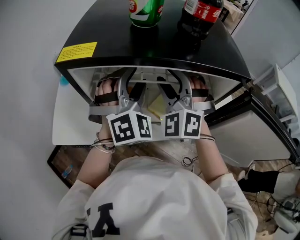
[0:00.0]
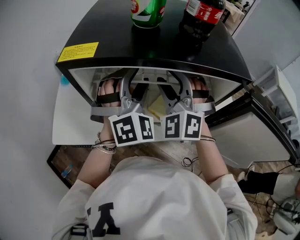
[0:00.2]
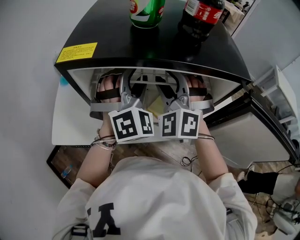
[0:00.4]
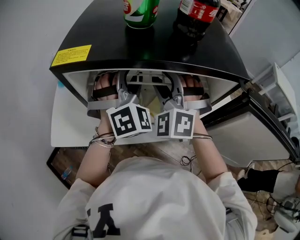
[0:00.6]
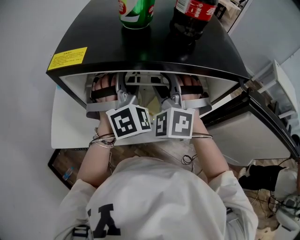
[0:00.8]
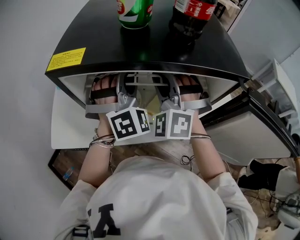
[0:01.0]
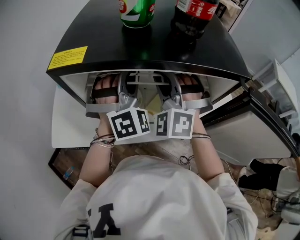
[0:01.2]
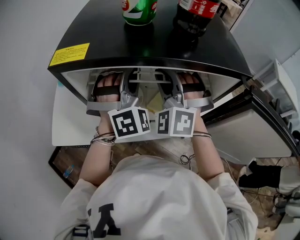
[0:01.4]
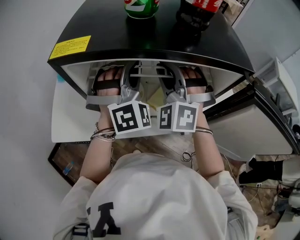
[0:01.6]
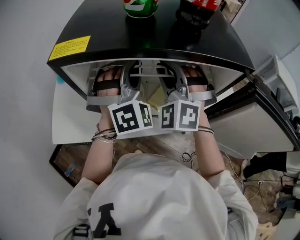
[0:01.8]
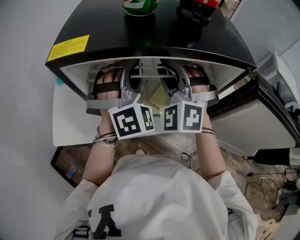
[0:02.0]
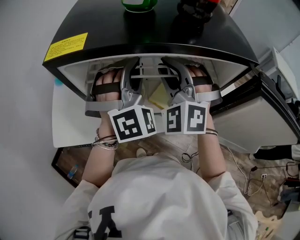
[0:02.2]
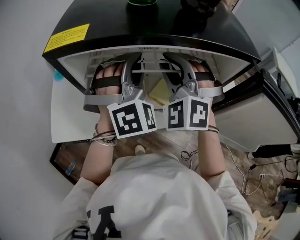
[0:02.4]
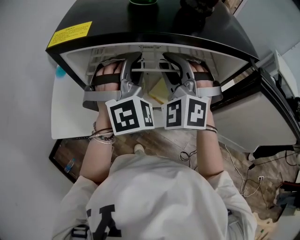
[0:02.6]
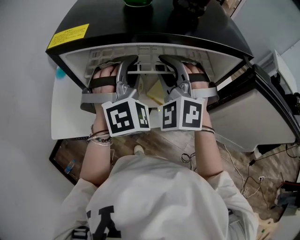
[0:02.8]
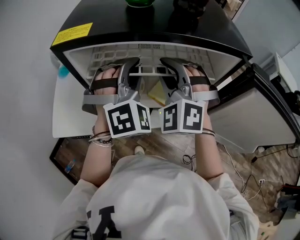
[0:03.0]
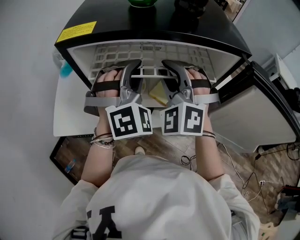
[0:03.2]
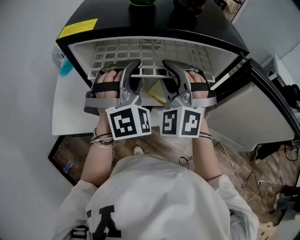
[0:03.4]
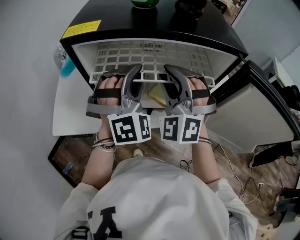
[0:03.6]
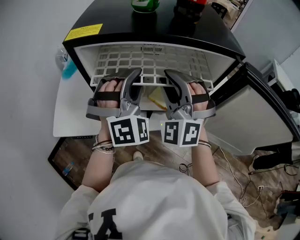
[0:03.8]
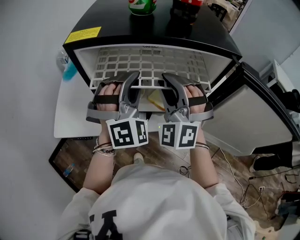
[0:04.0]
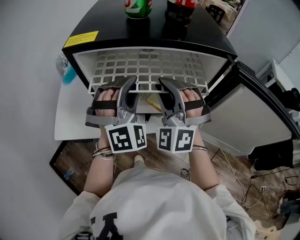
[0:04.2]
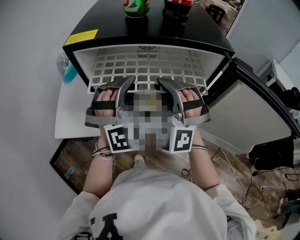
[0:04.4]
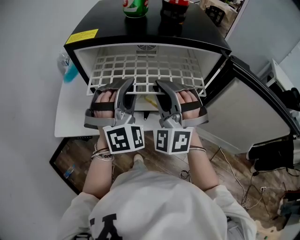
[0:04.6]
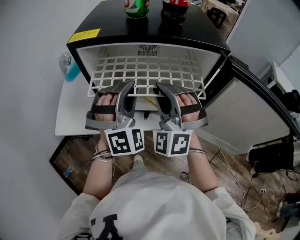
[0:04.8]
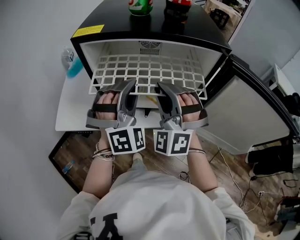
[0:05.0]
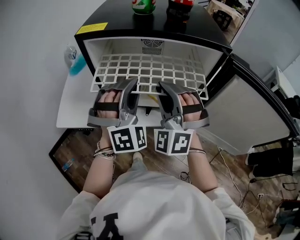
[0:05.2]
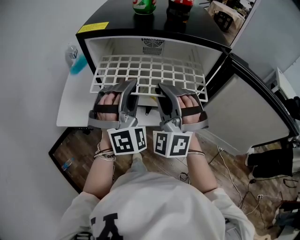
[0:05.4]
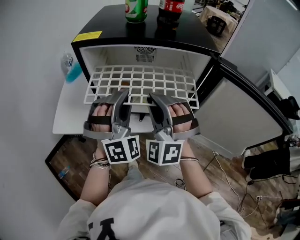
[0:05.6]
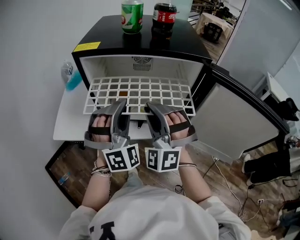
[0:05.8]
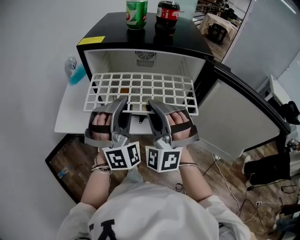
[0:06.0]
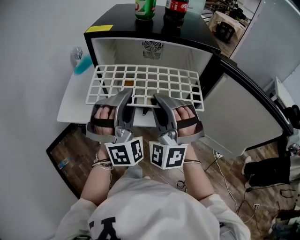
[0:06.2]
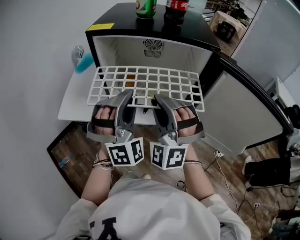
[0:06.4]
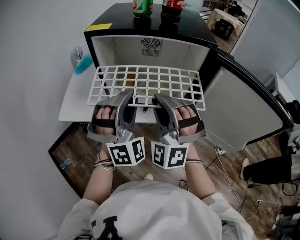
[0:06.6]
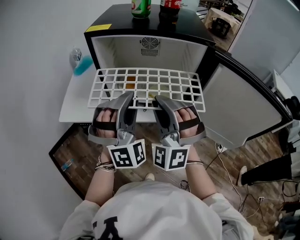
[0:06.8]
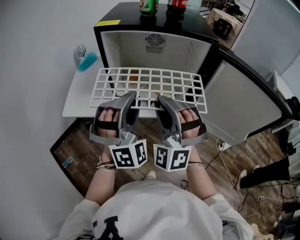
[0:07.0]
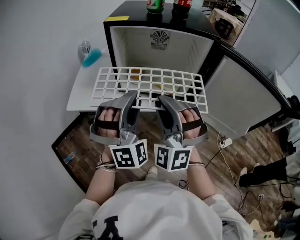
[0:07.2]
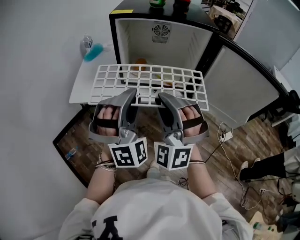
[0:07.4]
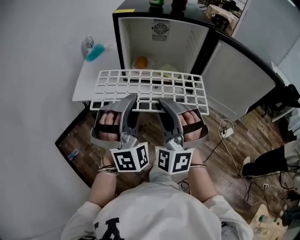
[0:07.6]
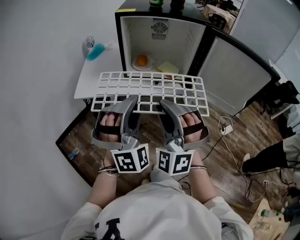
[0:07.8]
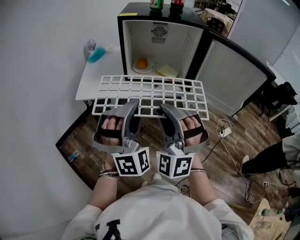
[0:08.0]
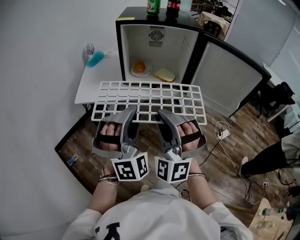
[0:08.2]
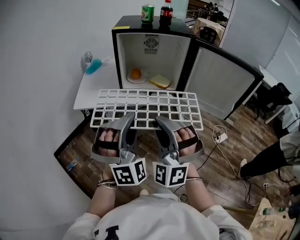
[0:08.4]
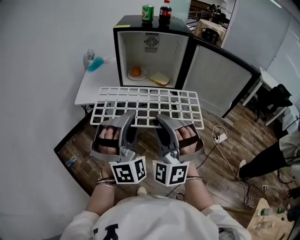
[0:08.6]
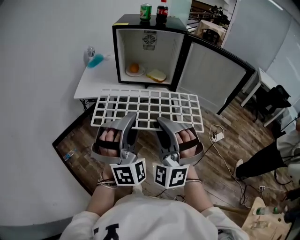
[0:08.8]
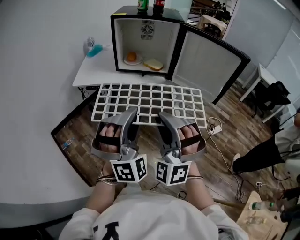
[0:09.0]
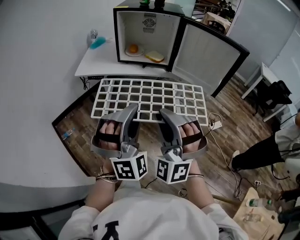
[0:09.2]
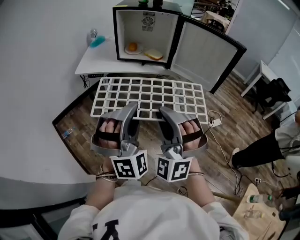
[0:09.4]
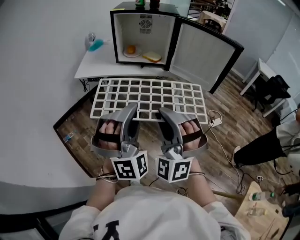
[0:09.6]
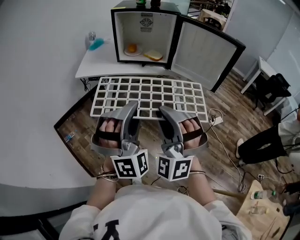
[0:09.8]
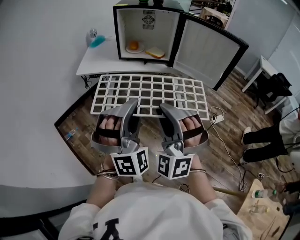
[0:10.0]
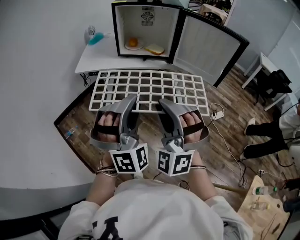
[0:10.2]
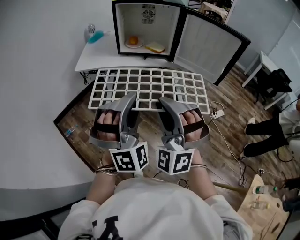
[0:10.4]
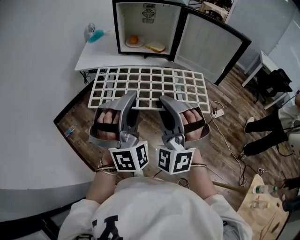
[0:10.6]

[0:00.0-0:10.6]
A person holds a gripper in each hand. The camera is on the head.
0:00.0 to 0:01.6: The left gripper closes its fingers; the right gripper closes its fingers.
0:01.6 to 0:03.0: The grippers stay close to where they were, moving slightly.
0:03.0 to 0:04.6: The two grippers go roughly 5 cm backward.
0:04.6 to 0:06.0: The two grippers go roughly 10 cm backward.
0:06.0 to 0:07.6: Both grippers move backward, some 20 cm.
0:07.6 to 0:09.0: The grippers both shift backward by about 25 cm.
0:09.0 to 0:10.6: The grippers make only small movements.

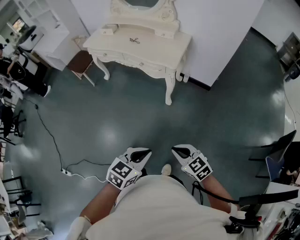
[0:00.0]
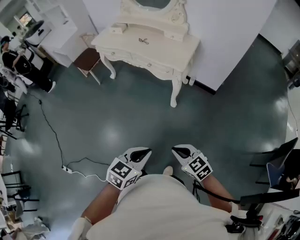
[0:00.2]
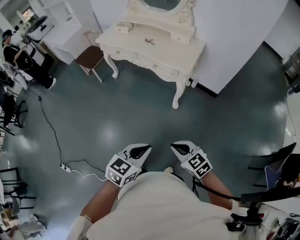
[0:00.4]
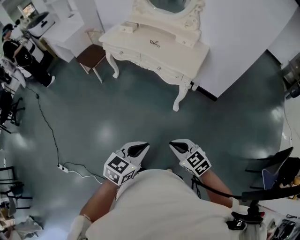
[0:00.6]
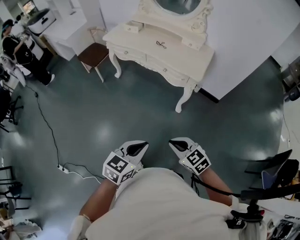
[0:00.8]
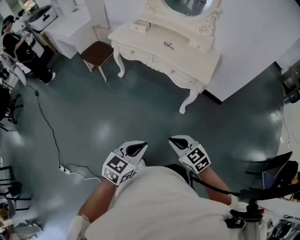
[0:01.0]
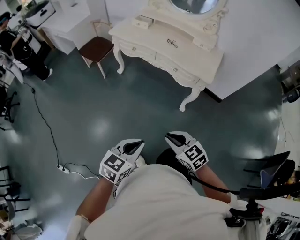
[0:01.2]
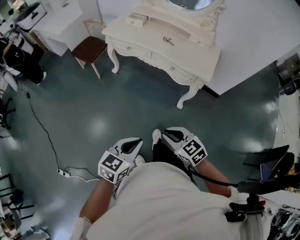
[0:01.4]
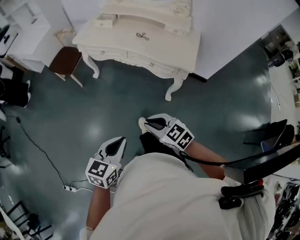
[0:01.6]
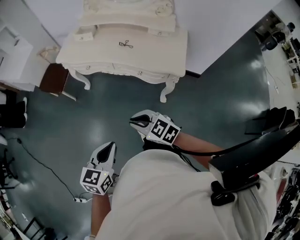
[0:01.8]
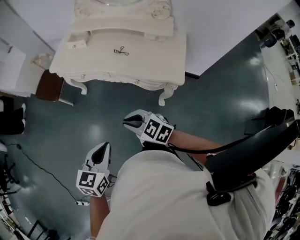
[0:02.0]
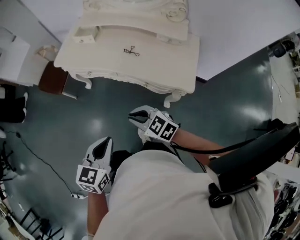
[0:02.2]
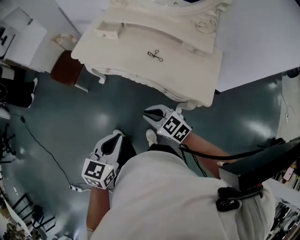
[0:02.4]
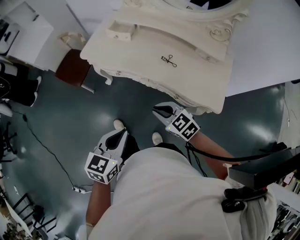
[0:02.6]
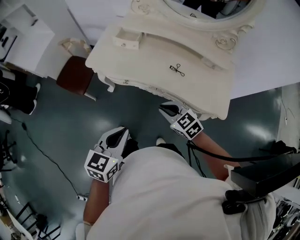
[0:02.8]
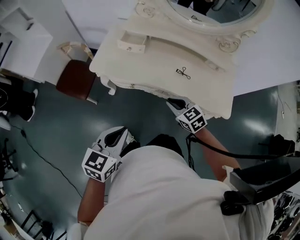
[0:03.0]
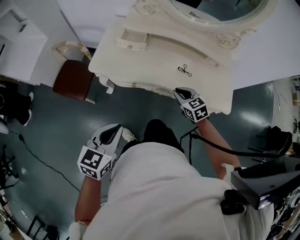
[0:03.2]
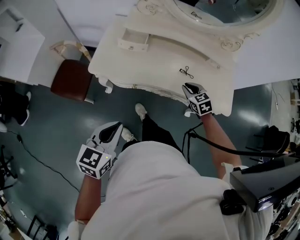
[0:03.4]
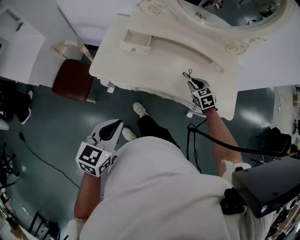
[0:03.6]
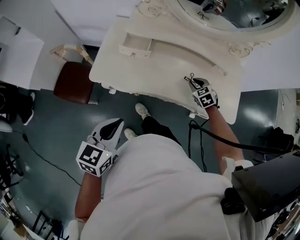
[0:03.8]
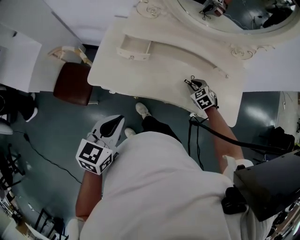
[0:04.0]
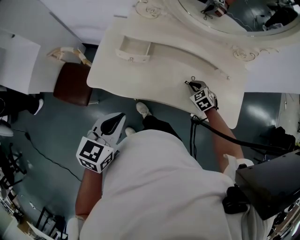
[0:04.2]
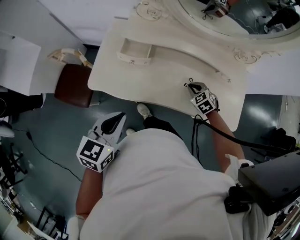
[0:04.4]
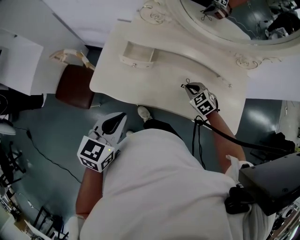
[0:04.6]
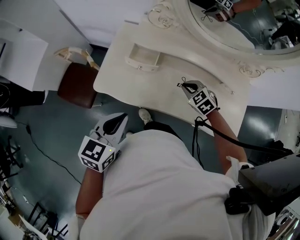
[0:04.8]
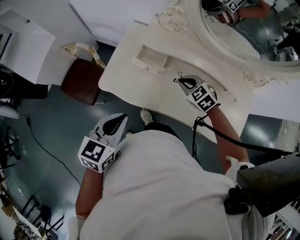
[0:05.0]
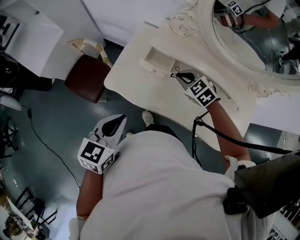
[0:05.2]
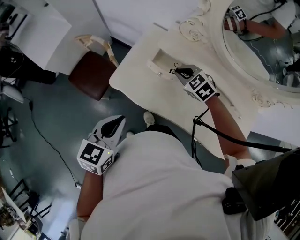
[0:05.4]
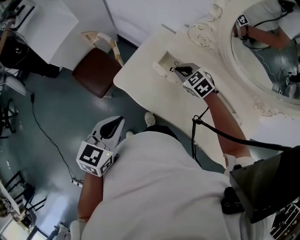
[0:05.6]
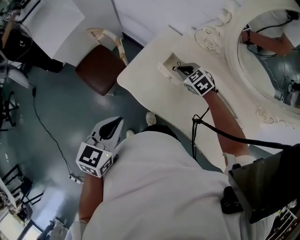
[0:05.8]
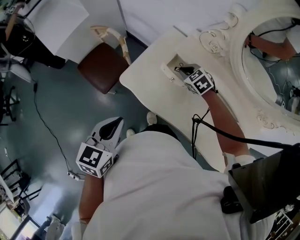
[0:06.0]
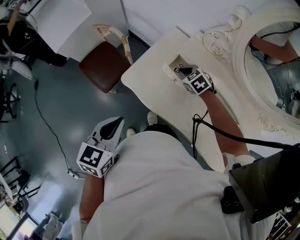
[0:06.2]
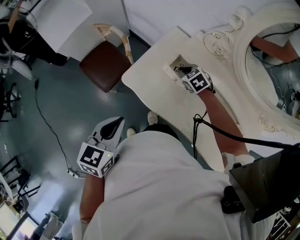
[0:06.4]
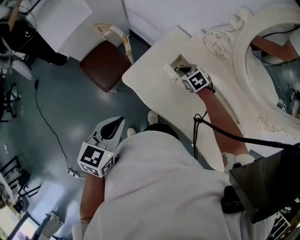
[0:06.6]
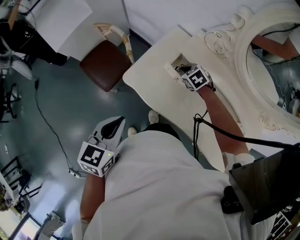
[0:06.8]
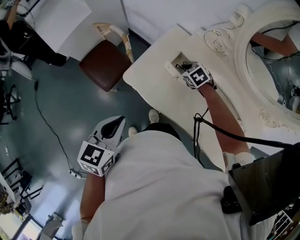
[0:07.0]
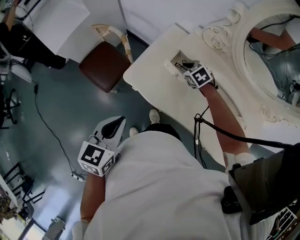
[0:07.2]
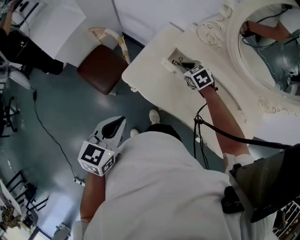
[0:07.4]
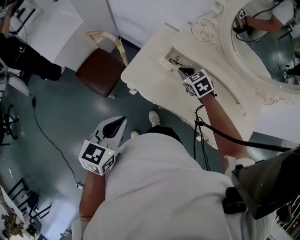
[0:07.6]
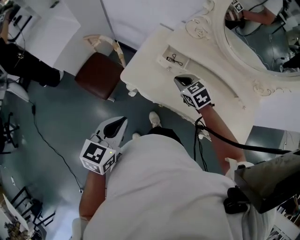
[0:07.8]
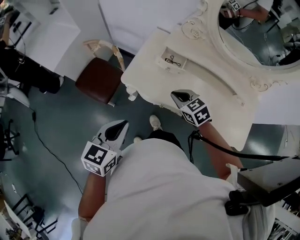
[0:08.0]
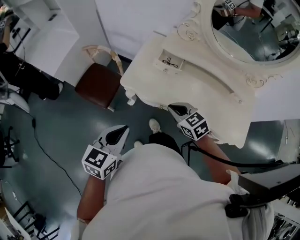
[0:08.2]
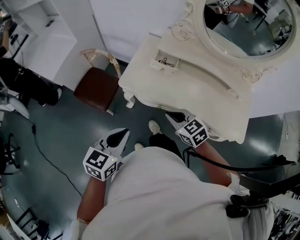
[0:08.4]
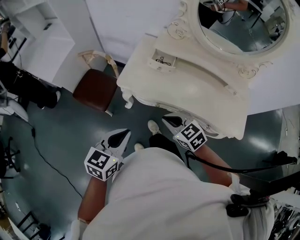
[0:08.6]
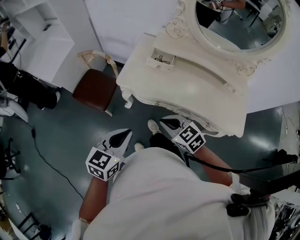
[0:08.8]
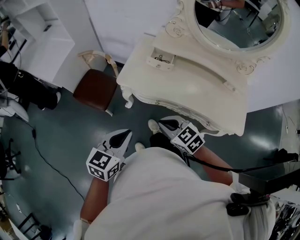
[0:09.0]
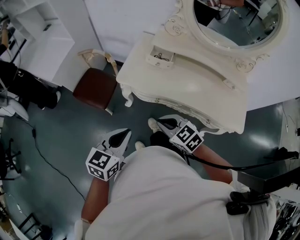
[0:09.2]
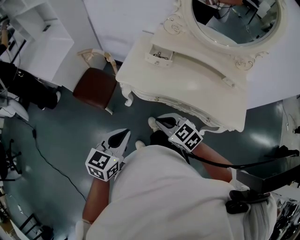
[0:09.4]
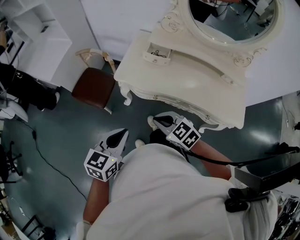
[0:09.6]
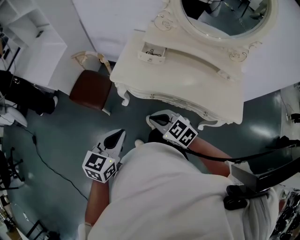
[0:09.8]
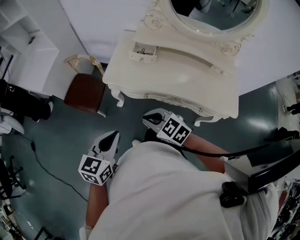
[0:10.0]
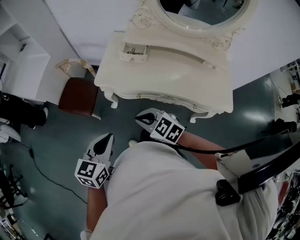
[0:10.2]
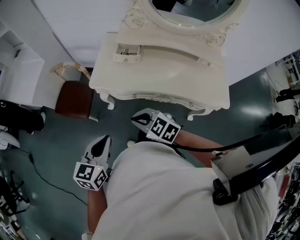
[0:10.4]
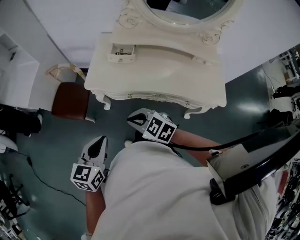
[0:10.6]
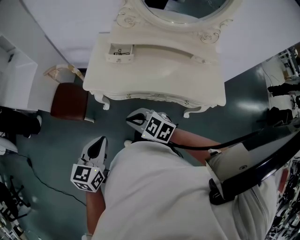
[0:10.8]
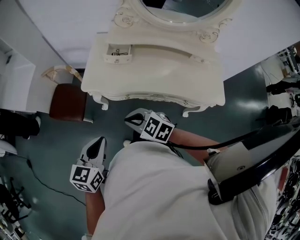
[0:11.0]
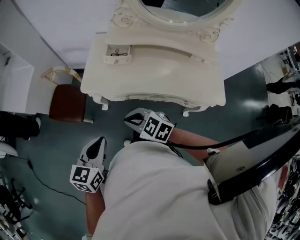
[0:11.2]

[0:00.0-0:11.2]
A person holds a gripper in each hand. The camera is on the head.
0:00.0 to 0:01.6: Both grippers are carried to the left and forward, about 40 cm.
0:01.6 to 0:03.2: The pair of grippers is taken some 50 cm. The right gripper rotates approximately 30 degrees.
0:03.2 to 0:04.8: The grippers both shift forward by about 25 cm. The right gripper swivels roughly 20 degrees.
0:04.8 to 0:06.4: The right gripper reaches some 5 cm upward, then returns; the left gripper moves about 10 cm, and changes its angle by approximately 30 degrees.
0:06.4 to 0:08.0: The right gripper is displaced backward and upward by approximately 25 cm, and turns by approximately 20 degrees, while the left gripper travels backward by some 10 cm.
0:08.0 to 0:09.6: The right gripper travels backward by some 20 cm, while the left gripper goes approximately 15 cm backward.
0:09.6 to 0:11.2: The grippers make only small movements.

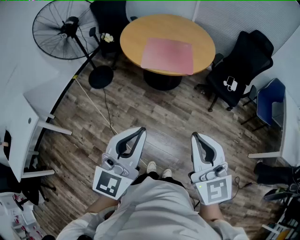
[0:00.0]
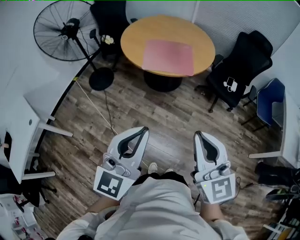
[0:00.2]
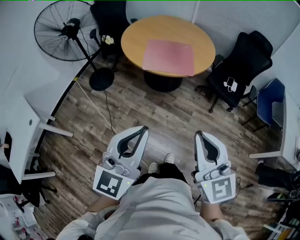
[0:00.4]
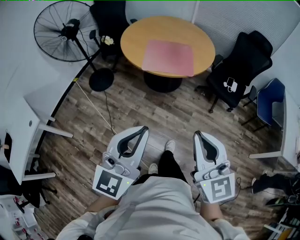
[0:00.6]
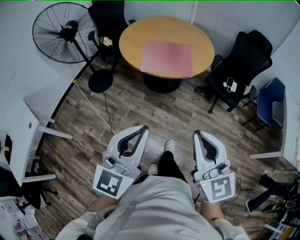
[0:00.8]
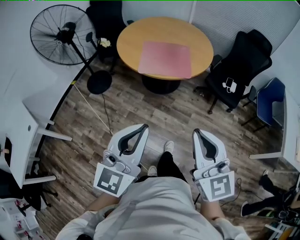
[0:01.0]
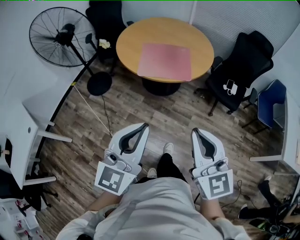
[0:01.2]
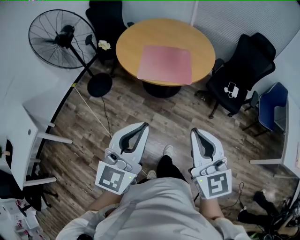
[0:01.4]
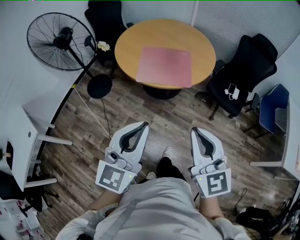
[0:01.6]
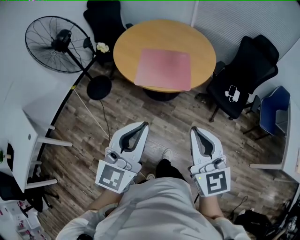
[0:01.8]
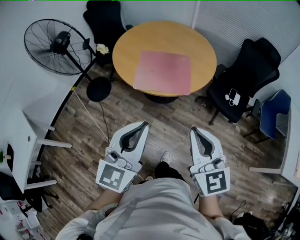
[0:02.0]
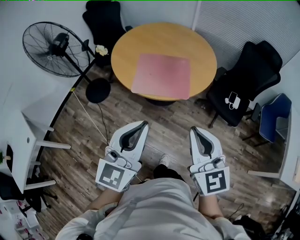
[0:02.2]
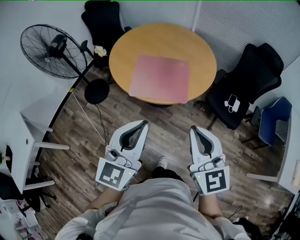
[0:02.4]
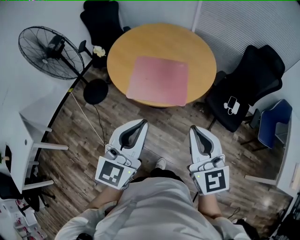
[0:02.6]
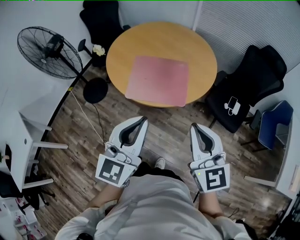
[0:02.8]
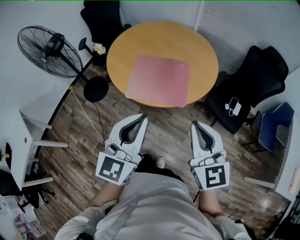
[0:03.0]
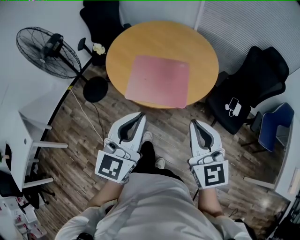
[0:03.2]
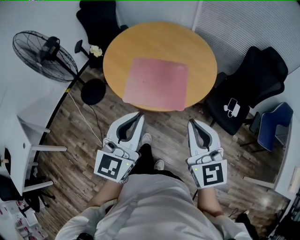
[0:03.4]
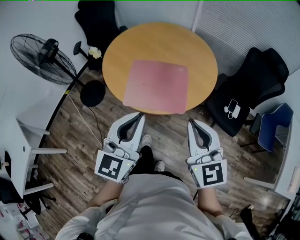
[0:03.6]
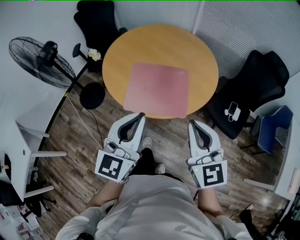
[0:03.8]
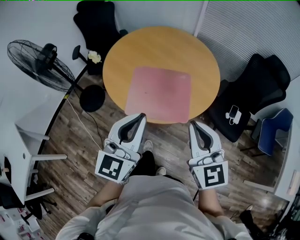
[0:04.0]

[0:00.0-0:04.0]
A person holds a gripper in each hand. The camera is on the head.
0:00.0 to 0:01.4: The grippers both shift forward by about 10 cm.
0:01.4 to 0:02.6: The two grippers go approximately 20 cm forward.
0:02.6 to 0:04.0: Both grippers move forward, about 15 cm.
